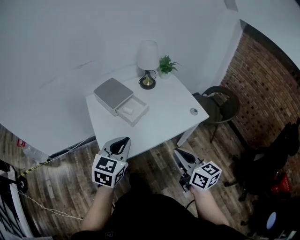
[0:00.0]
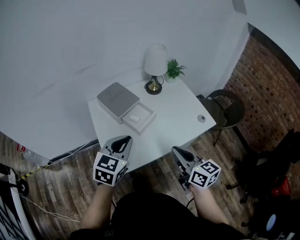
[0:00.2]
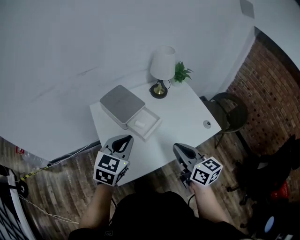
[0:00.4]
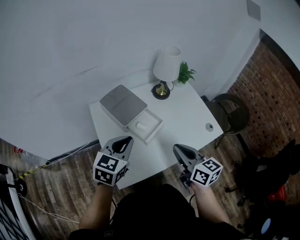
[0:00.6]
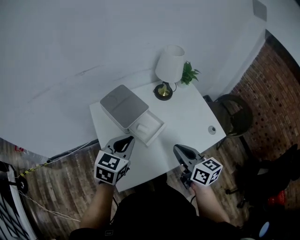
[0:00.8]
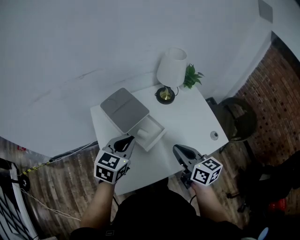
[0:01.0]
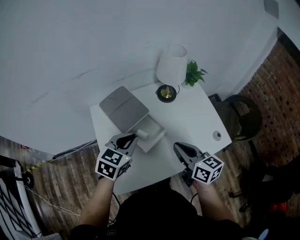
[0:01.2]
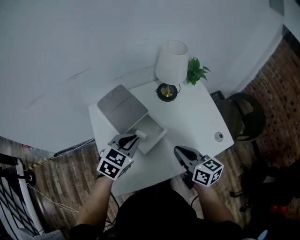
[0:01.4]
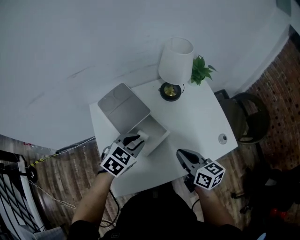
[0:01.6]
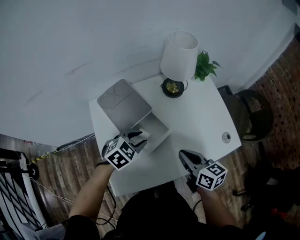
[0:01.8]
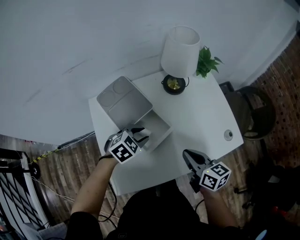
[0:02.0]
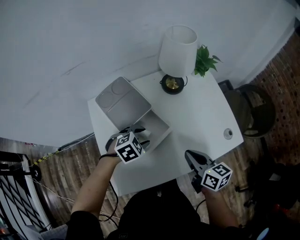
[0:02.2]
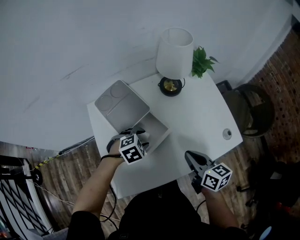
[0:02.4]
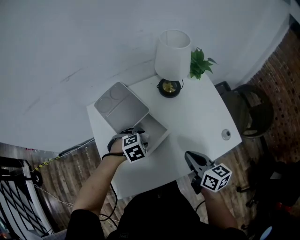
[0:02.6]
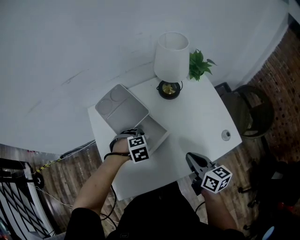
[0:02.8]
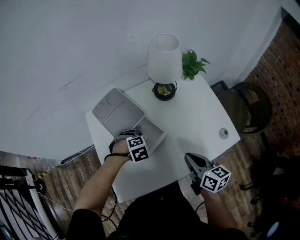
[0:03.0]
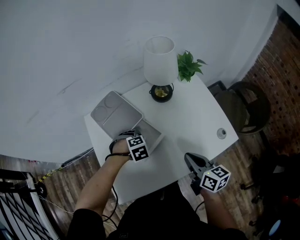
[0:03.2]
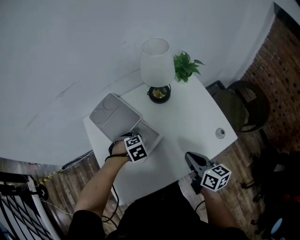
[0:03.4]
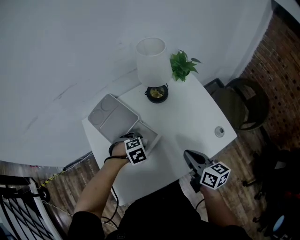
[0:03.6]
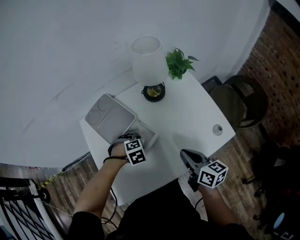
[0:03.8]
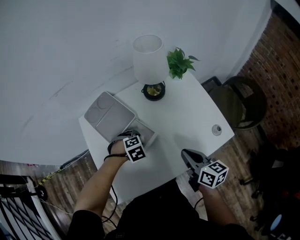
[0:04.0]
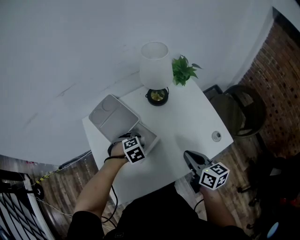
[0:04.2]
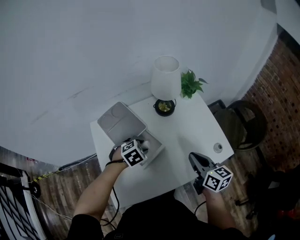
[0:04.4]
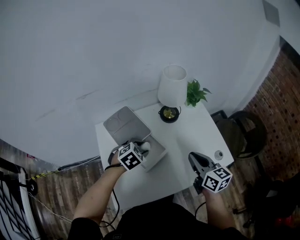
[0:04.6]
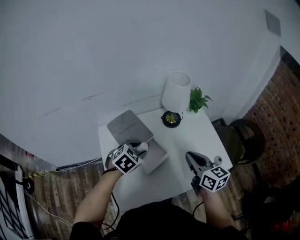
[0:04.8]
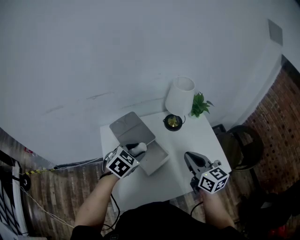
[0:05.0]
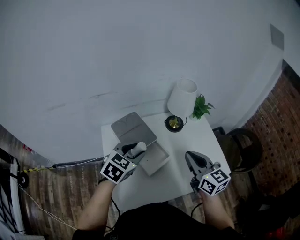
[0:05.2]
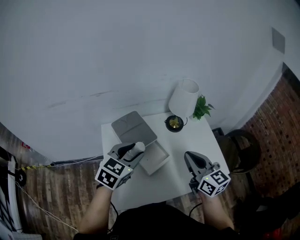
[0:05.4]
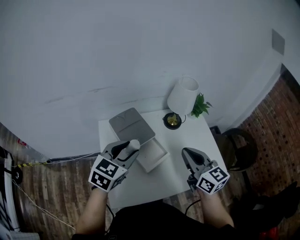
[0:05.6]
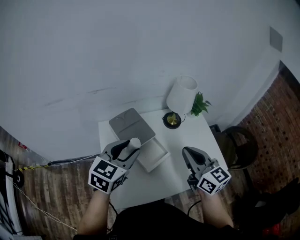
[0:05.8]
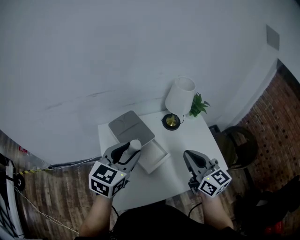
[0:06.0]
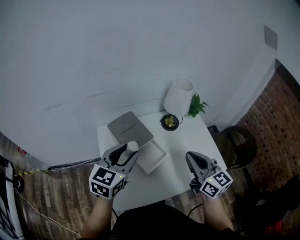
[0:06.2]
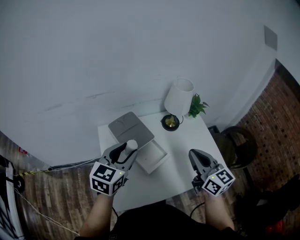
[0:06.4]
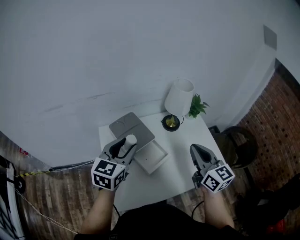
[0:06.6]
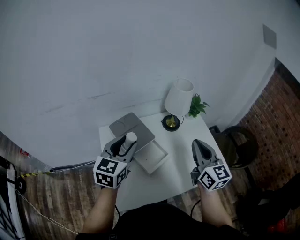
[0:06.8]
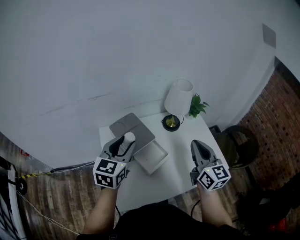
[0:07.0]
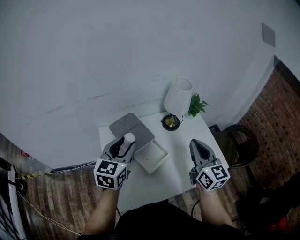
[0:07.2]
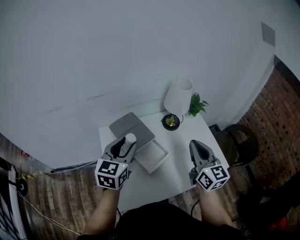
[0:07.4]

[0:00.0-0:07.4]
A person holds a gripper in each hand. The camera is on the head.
0.0 to 1.4 s: The grippers both shift forward by approximately 30 cm.
1.4 to 3.0 s: The left gripper heads downward, covering about 20 cm, tilts its fingers roughly 40 degrees downward, and opens up. The right gripper shifts about 5 cm downward.
3.0 to 4.4 s: Both grippers move upward, about 5 cm. The left gripper changes its angle by some 20 degrees.
4.4 to 6.0 s: The right gripper shifts some 15 cm upward and to the left, and rotates some 20 degrees. Meanwhile the left gripper shifts approximately 25 cm upward, and tips its fingers upward by approximately 50 degrees.
6.0 to 7.4 s: There are only small adjustments of the grippers.

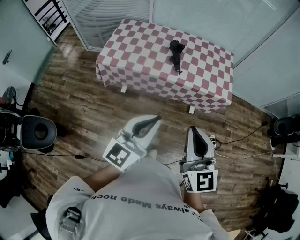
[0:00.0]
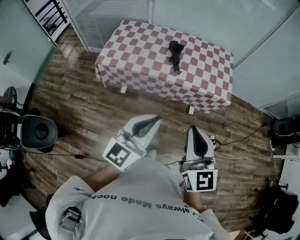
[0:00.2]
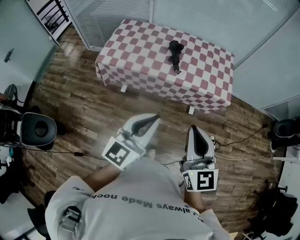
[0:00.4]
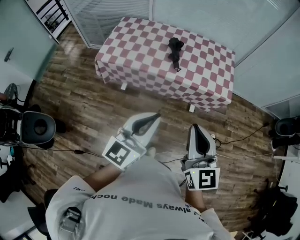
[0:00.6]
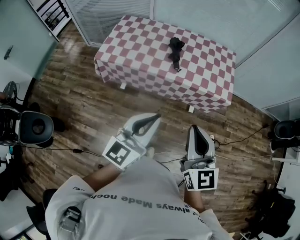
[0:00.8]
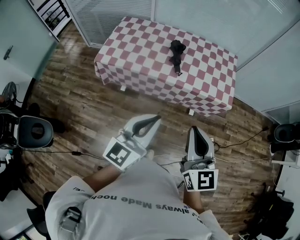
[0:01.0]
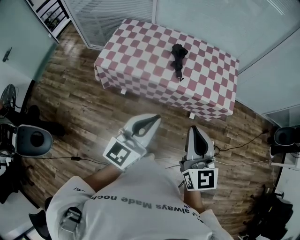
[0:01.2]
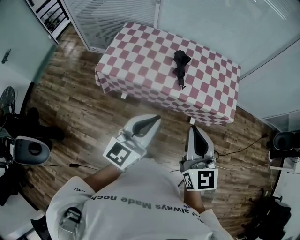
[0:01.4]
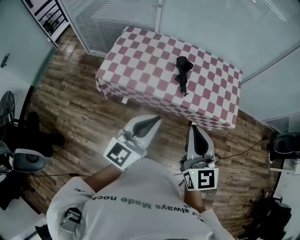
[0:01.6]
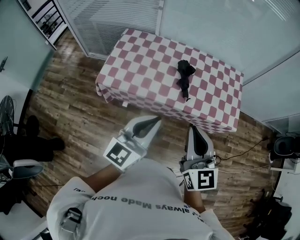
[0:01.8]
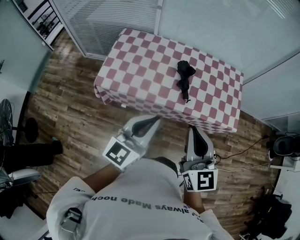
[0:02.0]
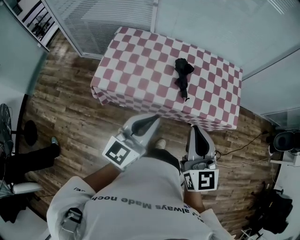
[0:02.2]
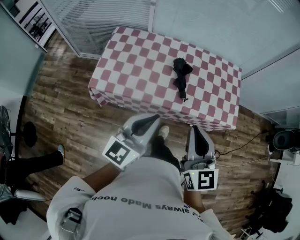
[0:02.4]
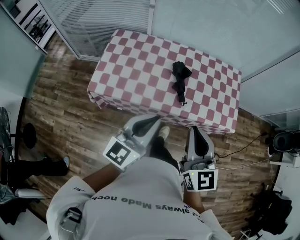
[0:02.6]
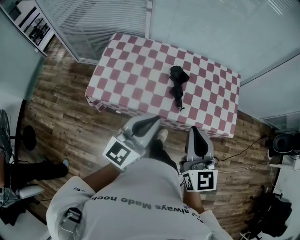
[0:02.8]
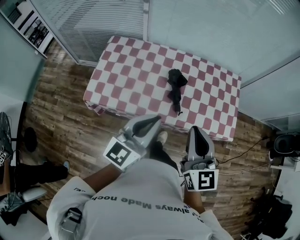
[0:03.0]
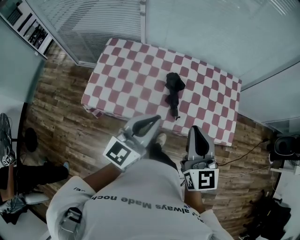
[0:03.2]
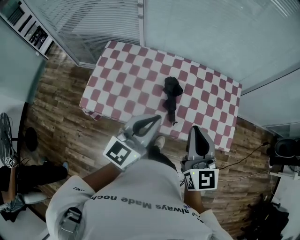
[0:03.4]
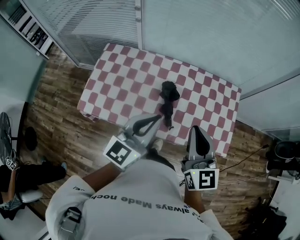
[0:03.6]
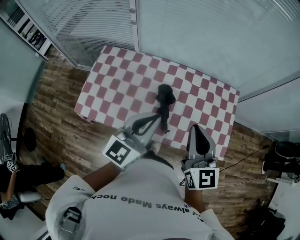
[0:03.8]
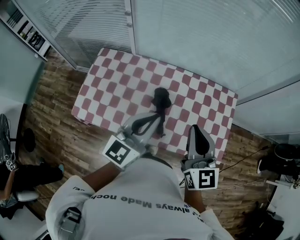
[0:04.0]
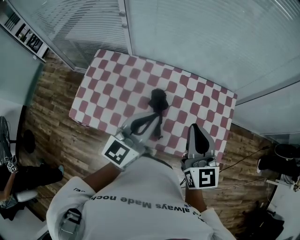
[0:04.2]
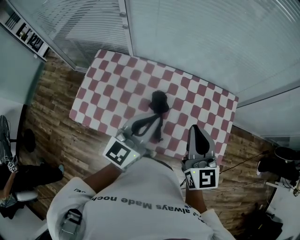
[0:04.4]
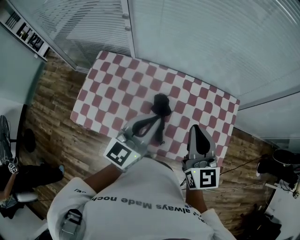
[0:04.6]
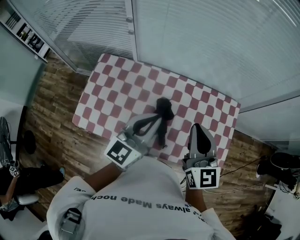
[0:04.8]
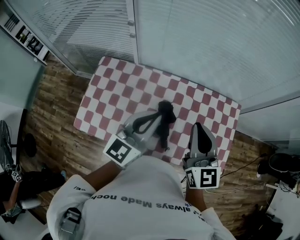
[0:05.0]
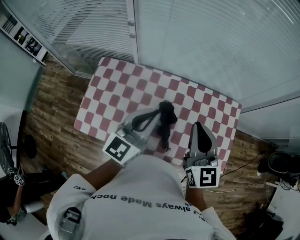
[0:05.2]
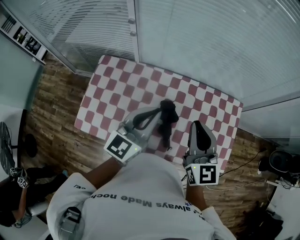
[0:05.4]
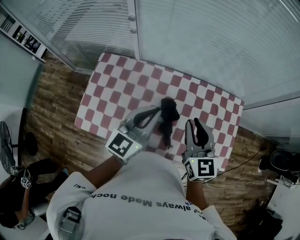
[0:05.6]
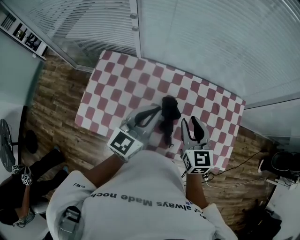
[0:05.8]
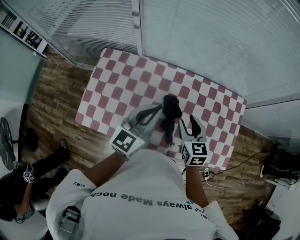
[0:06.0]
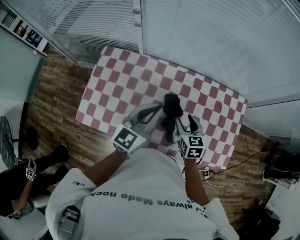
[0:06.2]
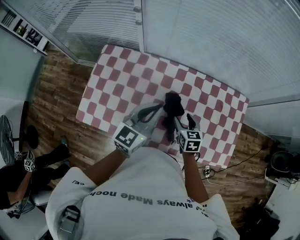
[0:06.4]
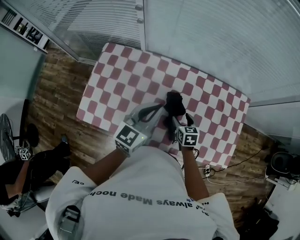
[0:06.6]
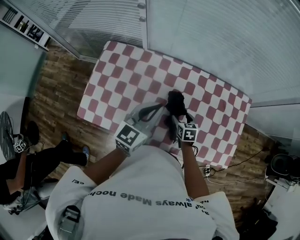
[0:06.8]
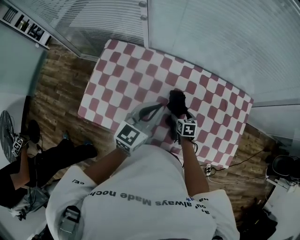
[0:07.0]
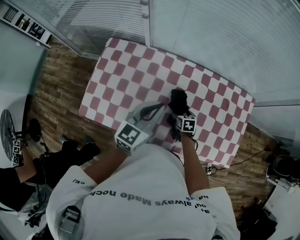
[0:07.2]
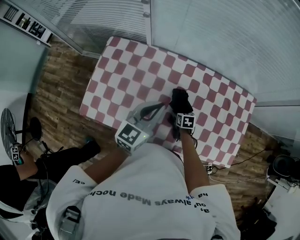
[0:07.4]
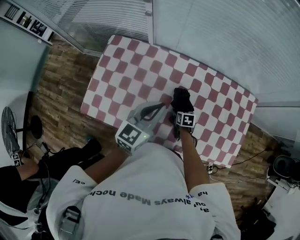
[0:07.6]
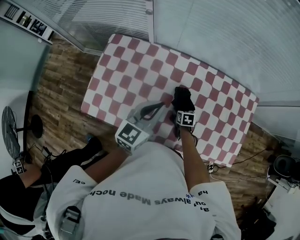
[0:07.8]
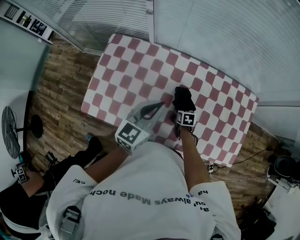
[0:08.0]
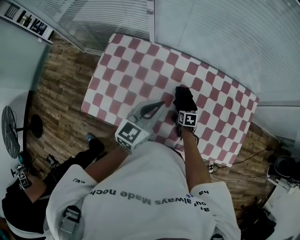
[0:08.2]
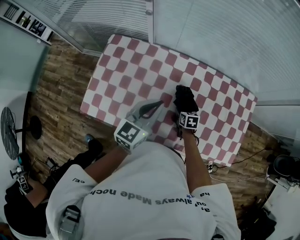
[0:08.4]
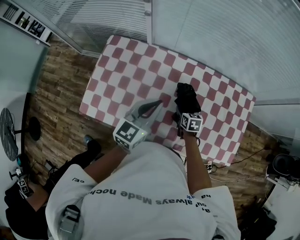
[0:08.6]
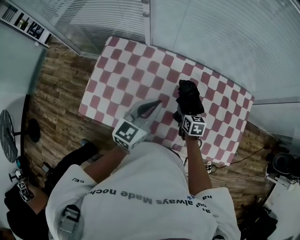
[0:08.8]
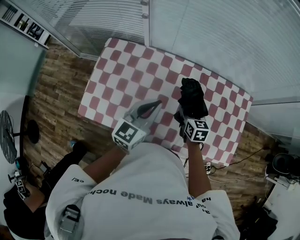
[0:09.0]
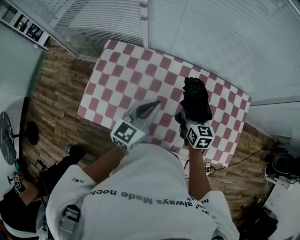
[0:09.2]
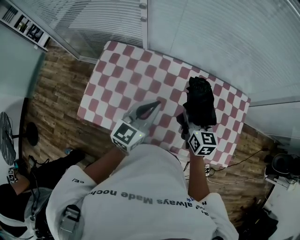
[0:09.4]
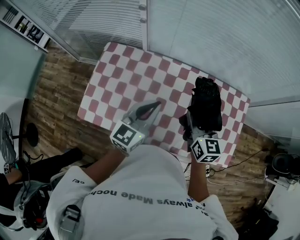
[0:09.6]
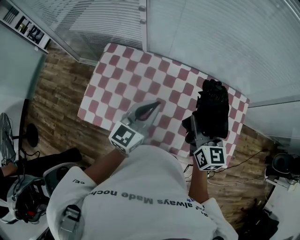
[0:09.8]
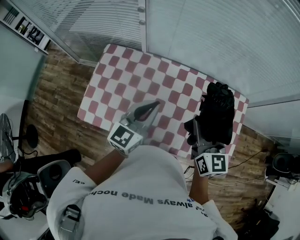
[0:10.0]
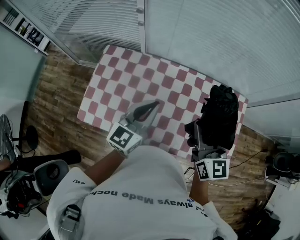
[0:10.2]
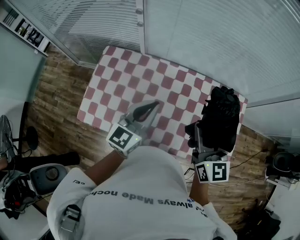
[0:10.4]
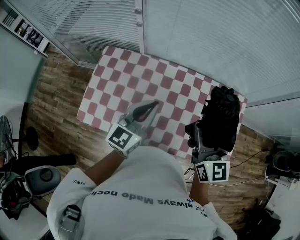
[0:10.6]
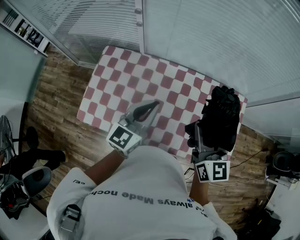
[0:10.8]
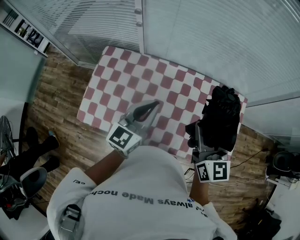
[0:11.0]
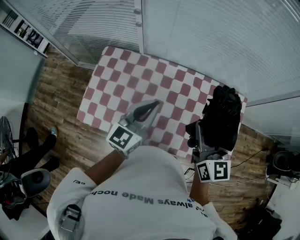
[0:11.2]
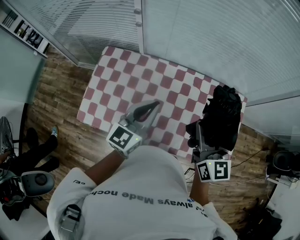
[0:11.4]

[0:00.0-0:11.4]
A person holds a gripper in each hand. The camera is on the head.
0.0 to 1.4 s: The grippers both shift forward by some 15 cm.
1.4 to 2.8 s: Both grippers move forward, some 20 cm.
2.8 to 4.2 s: Both grippers travel together forward and to the right, about 30 cm.
4.2 to 5.6 s: The grippers both shift forward and to the left by roughly 15 cm.
5.6 to 7.2 s: The right gripper moves downward, about 40 cm, tips its fingers downward by roughly 40 degrees, and opens its fingers. The left gripper is displaced downward by about 10 cm.
7.2 to 8.6 s: The grippers move only a little.
8.6 to 10.0 s: The left gripper travels upward by about 5 cm. Meanwhile the right gripper is displaced upward by some 35 cm, and tips its fingers upward by roughly 40 degrees.
10.0 to 11.4 s: The grippers make only small movements.

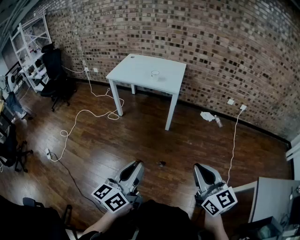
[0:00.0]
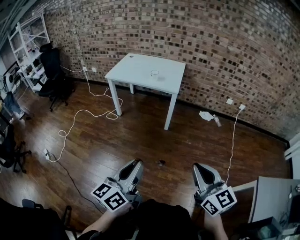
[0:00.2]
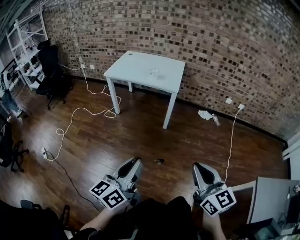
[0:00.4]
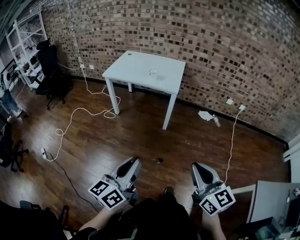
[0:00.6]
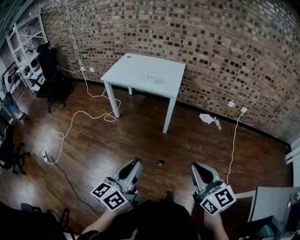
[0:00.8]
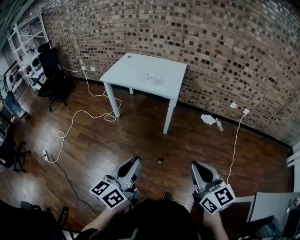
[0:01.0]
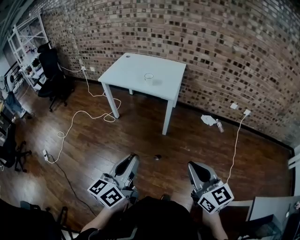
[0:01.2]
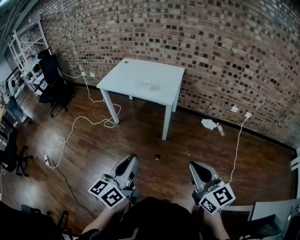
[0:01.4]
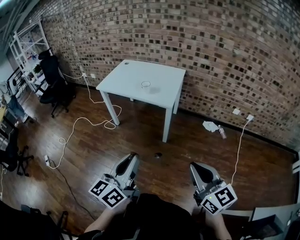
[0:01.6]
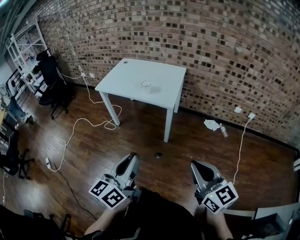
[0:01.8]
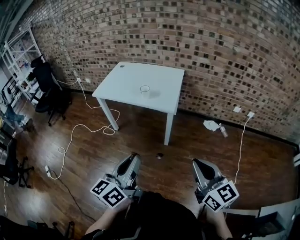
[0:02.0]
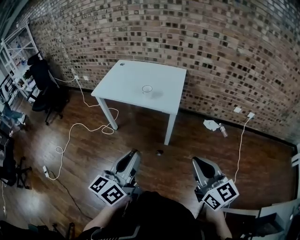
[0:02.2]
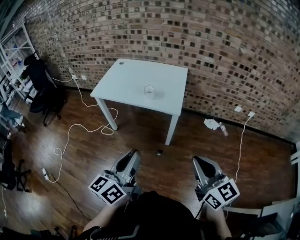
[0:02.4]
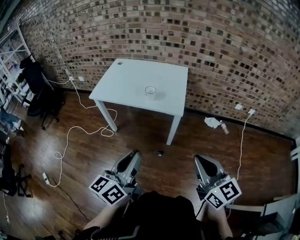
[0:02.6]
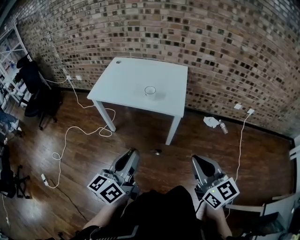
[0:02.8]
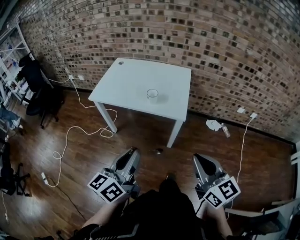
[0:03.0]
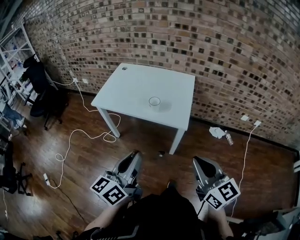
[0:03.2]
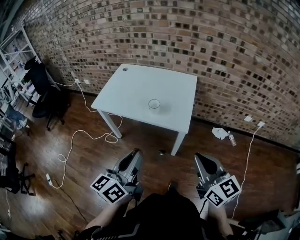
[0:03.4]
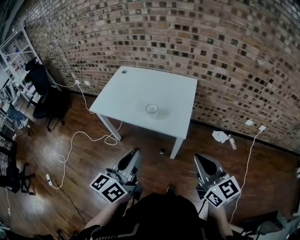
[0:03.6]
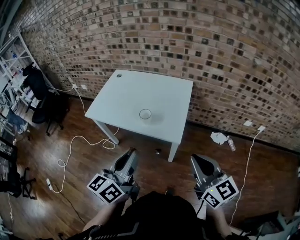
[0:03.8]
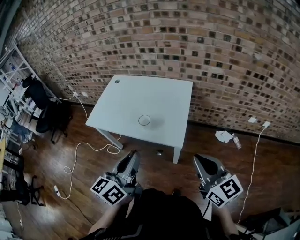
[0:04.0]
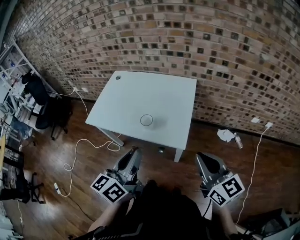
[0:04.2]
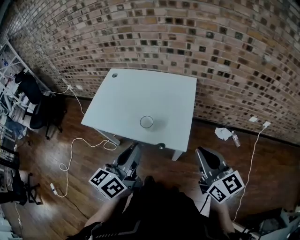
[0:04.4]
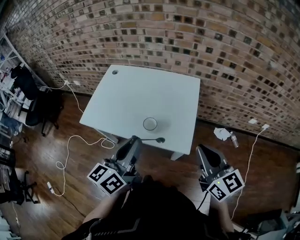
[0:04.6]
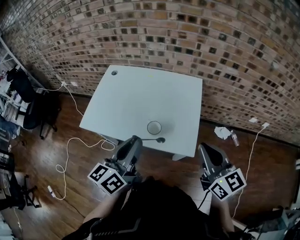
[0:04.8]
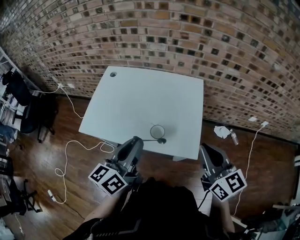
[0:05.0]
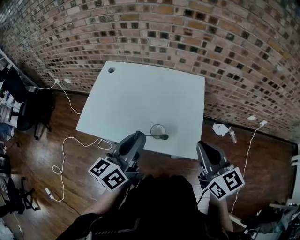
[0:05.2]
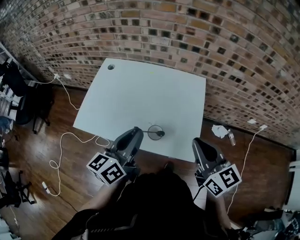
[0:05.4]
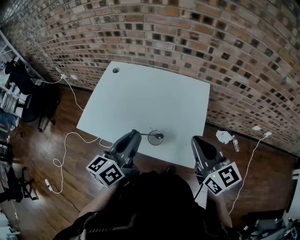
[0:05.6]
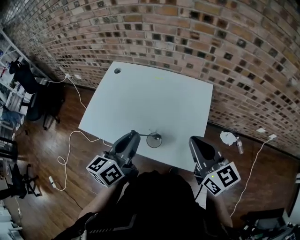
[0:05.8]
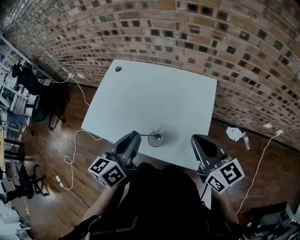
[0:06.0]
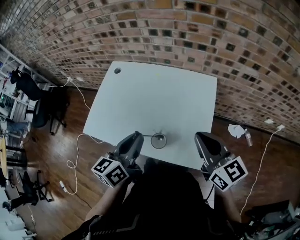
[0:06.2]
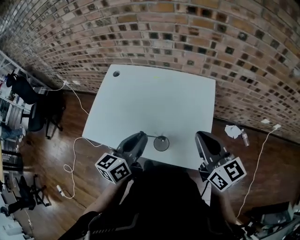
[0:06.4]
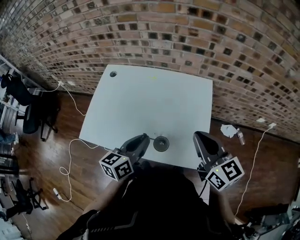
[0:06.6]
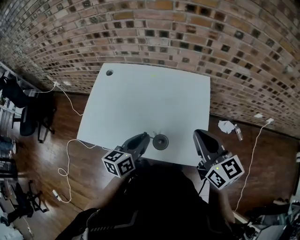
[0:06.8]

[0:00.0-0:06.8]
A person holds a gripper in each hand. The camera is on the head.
0.0 to 1.4 s: Both grippers move forward and to the right, approximately 20 cm.
1.4 to 2.8 s: The two grippers go some 25 cm forward and to the left.
2.8 to 4.0 s: Both grippers move forward and to the right, approximately 25 cm.
4.0 to 5.4 s: The left gripper travels forward by approximately 25 cm. Meanwhile the right gripper shifts approximately 25 cm forward and to the left.
5.4 to 6.8 s: The right gripper goes about 5 cm forward. Meanwhile the left gripper travels downward and forward by roughly 15 cm.
